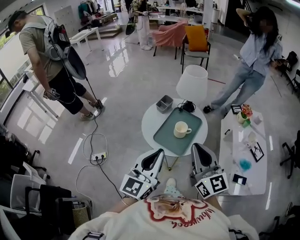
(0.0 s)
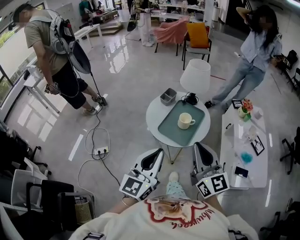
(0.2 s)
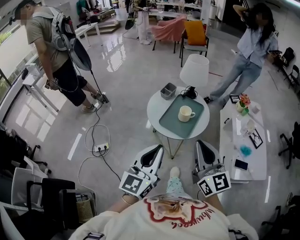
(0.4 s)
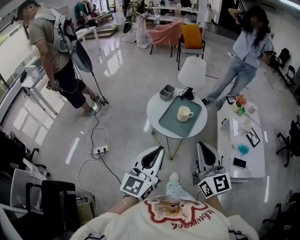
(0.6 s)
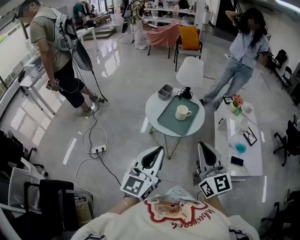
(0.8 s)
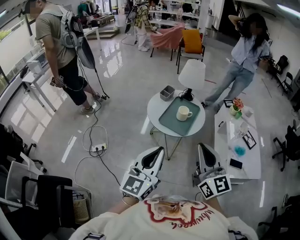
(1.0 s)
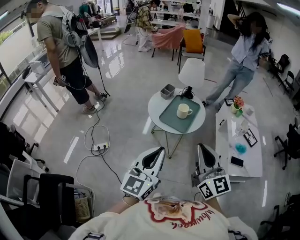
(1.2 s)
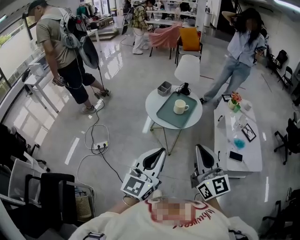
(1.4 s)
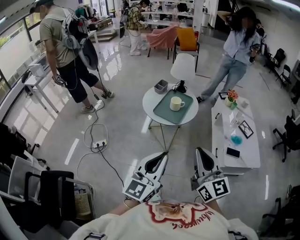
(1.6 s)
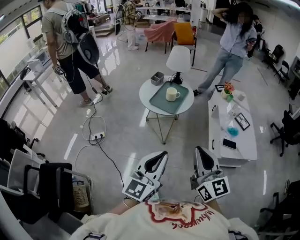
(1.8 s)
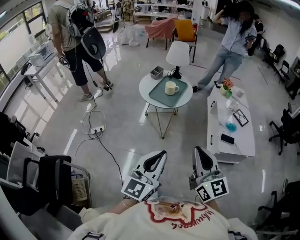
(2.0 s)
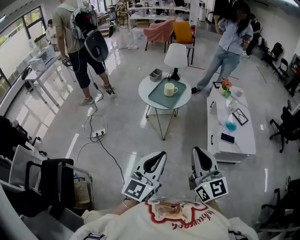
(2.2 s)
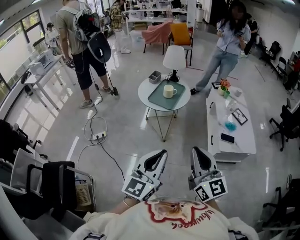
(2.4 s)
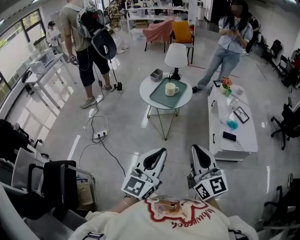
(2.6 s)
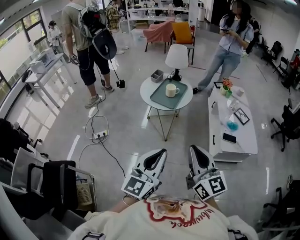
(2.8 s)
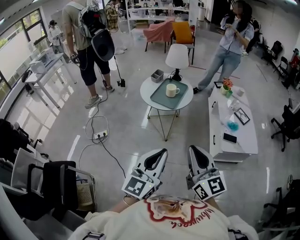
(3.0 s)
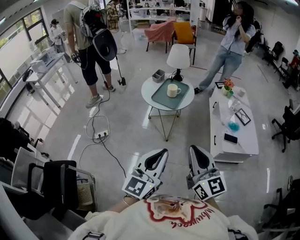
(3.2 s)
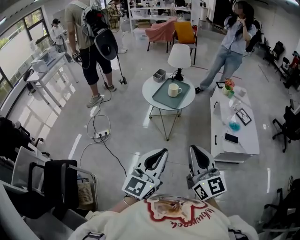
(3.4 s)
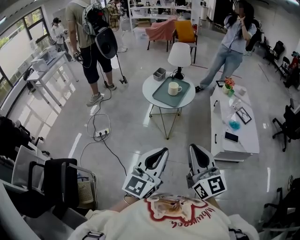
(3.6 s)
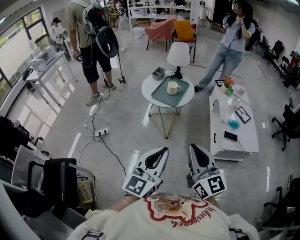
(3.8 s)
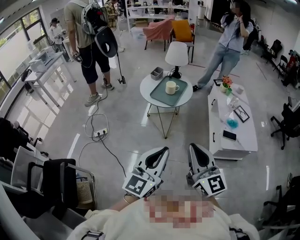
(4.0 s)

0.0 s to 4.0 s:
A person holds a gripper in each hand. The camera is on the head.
0.0 to 1.4 s: Both grippers travel together backward, some 20 cm.
1.4 to 2.6 s: The right gripper heads backward, covering about 15 cm. Meanwhile the left gripper is displaced backward and to the right by roughly 15 cm.
2.6 to 4.0 s: The grippers move only a little.

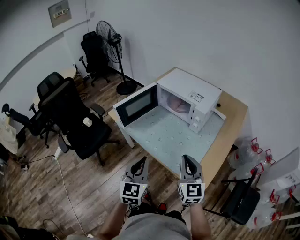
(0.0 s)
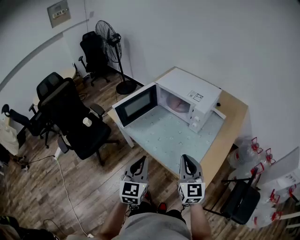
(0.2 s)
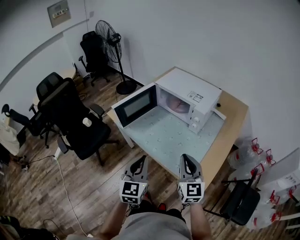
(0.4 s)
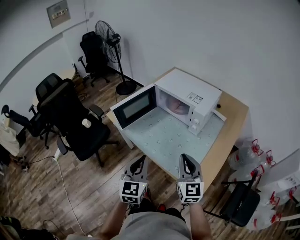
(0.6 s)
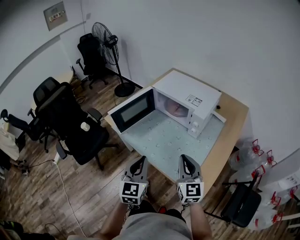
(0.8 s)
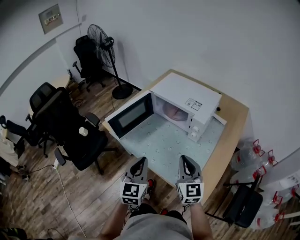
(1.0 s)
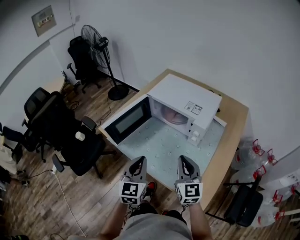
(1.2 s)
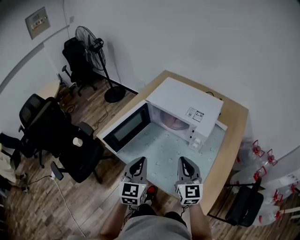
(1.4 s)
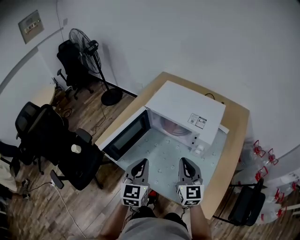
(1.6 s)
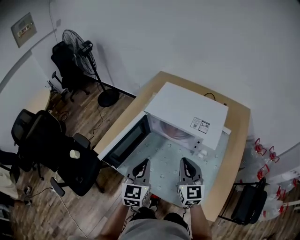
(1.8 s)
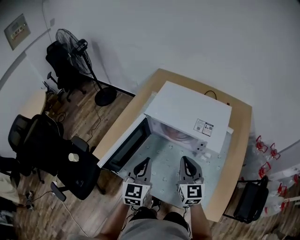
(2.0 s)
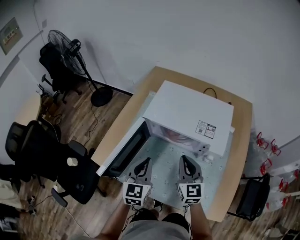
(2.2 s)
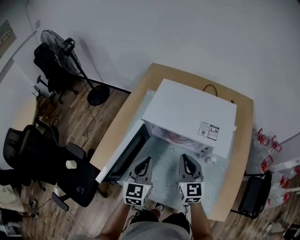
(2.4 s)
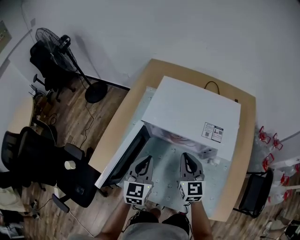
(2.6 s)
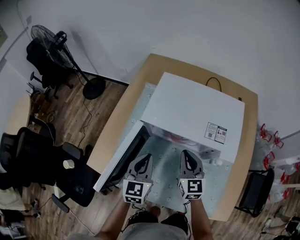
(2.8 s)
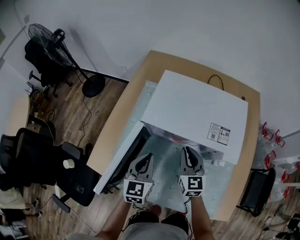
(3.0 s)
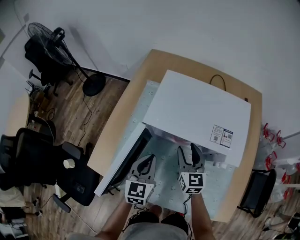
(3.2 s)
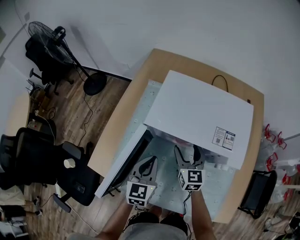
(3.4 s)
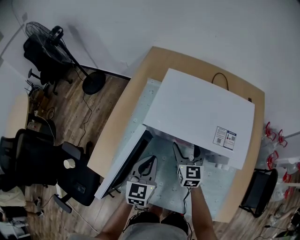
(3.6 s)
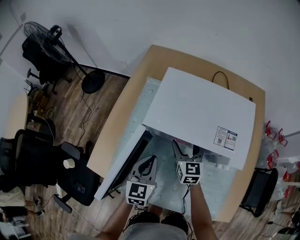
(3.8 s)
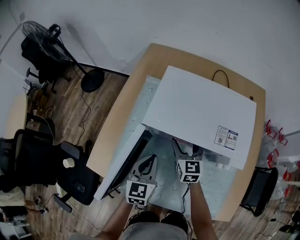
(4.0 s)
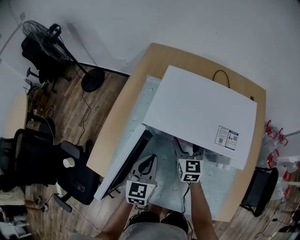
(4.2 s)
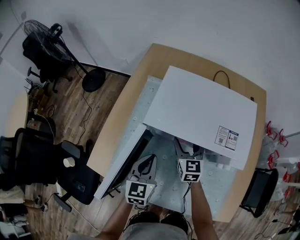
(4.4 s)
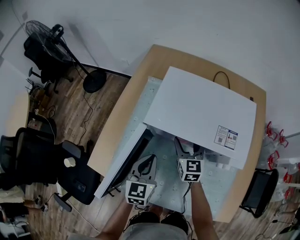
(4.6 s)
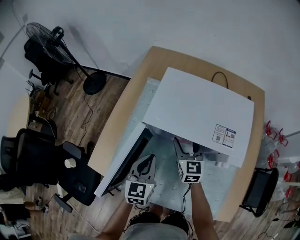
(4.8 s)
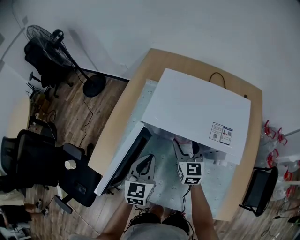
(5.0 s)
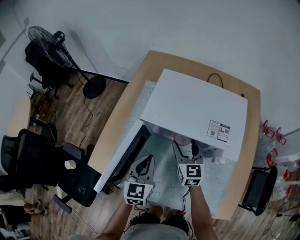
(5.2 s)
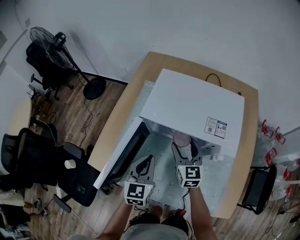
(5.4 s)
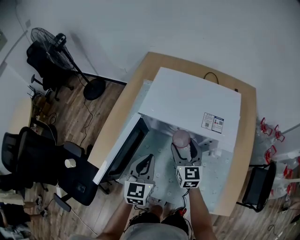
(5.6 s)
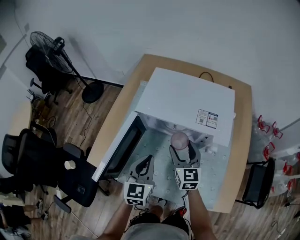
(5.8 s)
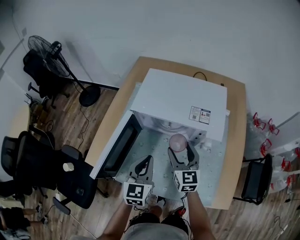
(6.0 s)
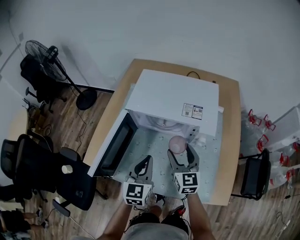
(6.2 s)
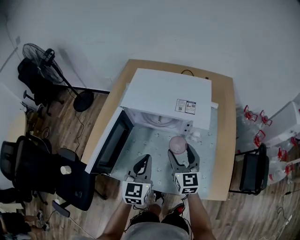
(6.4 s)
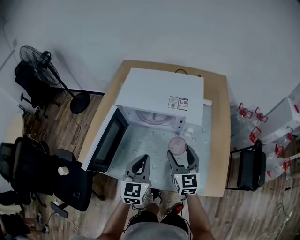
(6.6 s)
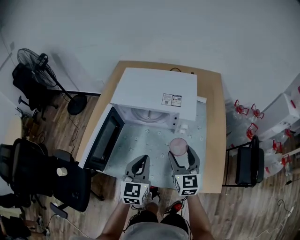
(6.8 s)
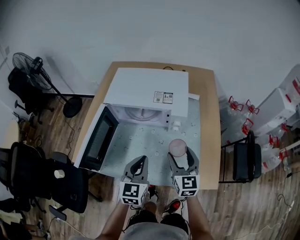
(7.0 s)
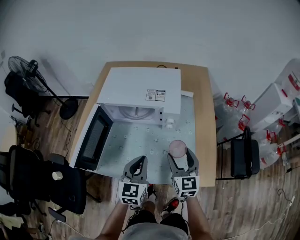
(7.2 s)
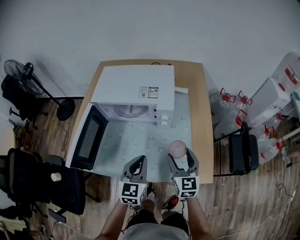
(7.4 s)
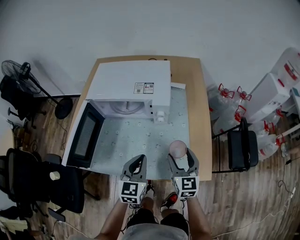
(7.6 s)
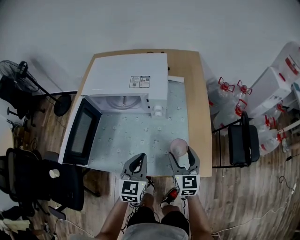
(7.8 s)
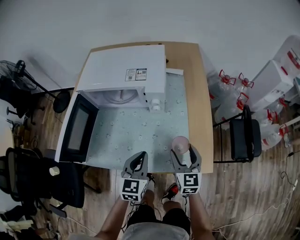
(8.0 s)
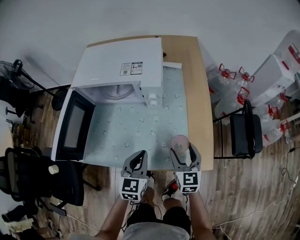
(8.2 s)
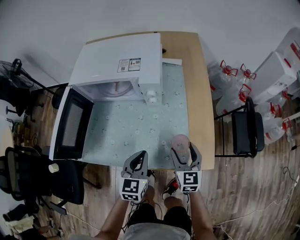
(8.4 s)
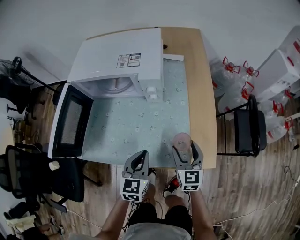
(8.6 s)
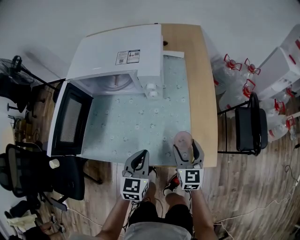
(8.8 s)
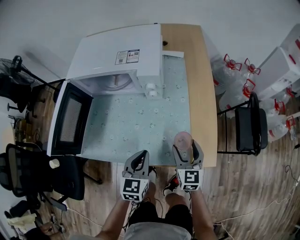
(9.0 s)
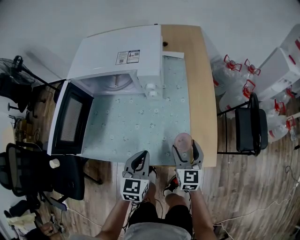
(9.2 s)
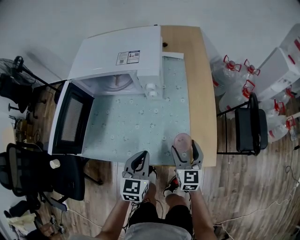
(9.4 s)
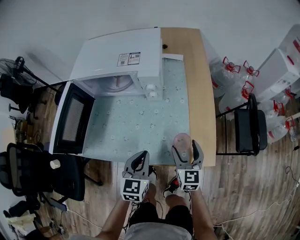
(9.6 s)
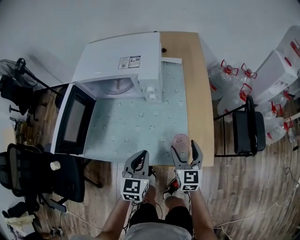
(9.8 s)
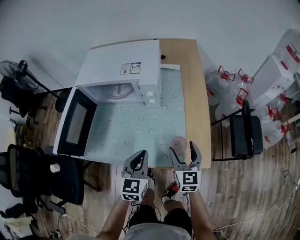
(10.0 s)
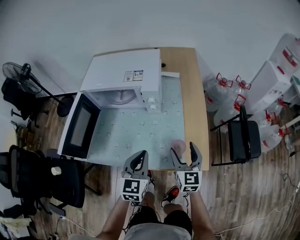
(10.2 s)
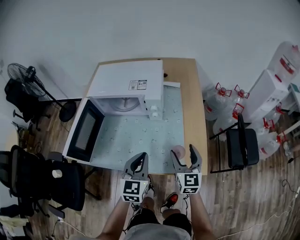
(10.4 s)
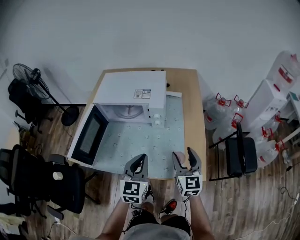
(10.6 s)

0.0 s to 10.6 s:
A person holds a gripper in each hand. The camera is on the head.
0.0 to 1.6 s: Both grippers move forward, roughly 25 cm.
1.6 to 3.0 s: Both grippers travel together forward and downward, roughly 20 cm.
3.0 to 4.6 s: The right gripper heads forward, covering roughly 5 cm, and opens up.
4.6 to 6.0 s: The left gripper travels backward, upward and to the right by roughly 10 cm. Meanwhile the right gripper travels backward and upward by about 15 cm.
6.0 to 7.6 s: The grippers both shift to the right and backward by some 20 cm.
7.6 to 9.0 s: The left gripper is displaced downward by approximately 10 cm, while the right gripper shifts about 15 cm downward and to the right.
9.0 to 10.6 s: Both grippers travel together upward, roughly 15 cm.

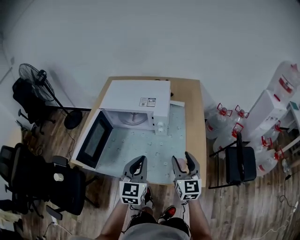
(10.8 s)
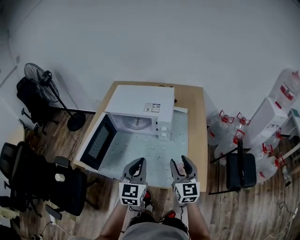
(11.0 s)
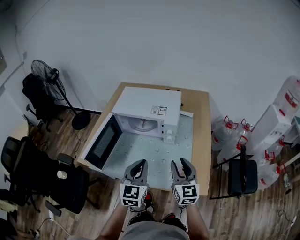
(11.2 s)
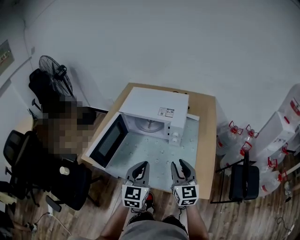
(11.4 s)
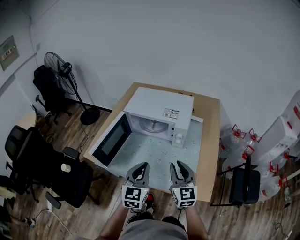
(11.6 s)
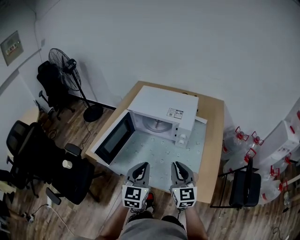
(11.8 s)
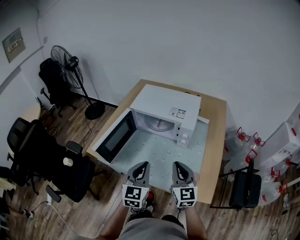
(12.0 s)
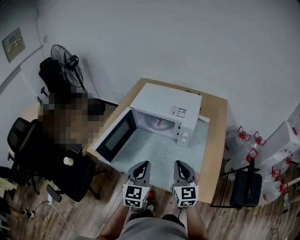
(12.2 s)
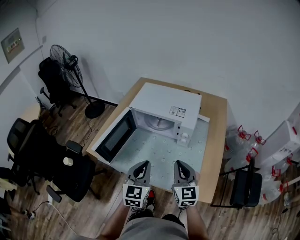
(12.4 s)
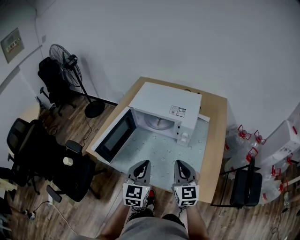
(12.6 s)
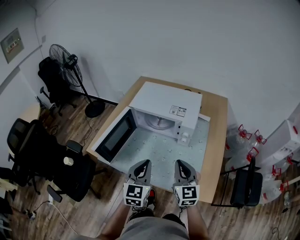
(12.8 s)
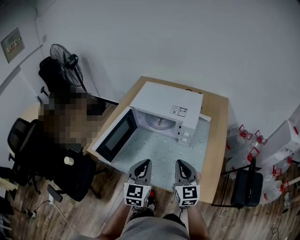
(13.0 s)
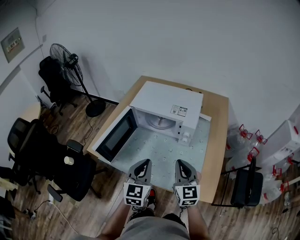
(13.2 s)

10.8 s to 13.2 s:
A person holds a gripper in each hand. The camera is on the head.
10.8 to 12.0 s: The two grippers go approximately 10 cm to the left. The right gripper closes its fingers.
12.0 to 13.2 s: The grippers make only small movements.

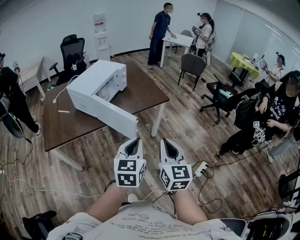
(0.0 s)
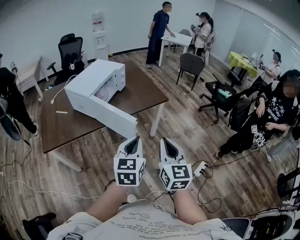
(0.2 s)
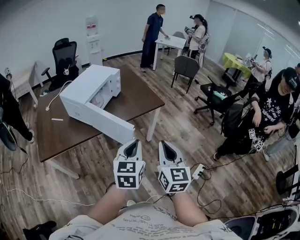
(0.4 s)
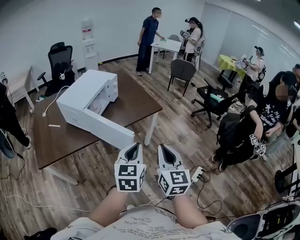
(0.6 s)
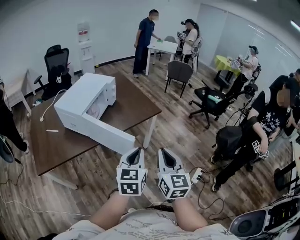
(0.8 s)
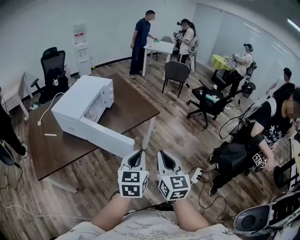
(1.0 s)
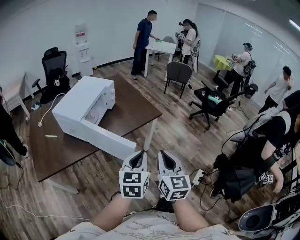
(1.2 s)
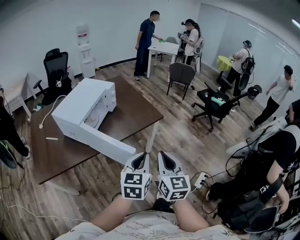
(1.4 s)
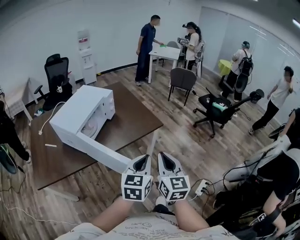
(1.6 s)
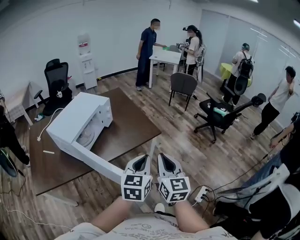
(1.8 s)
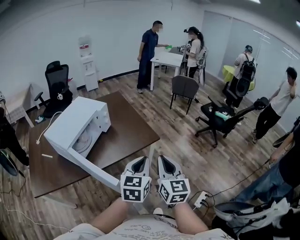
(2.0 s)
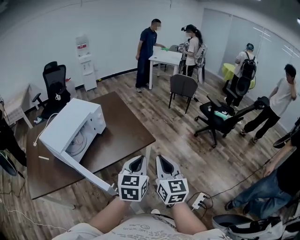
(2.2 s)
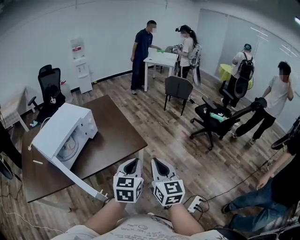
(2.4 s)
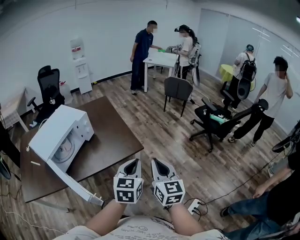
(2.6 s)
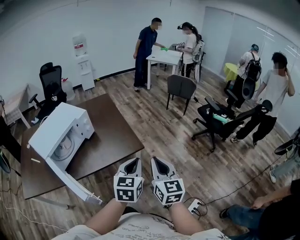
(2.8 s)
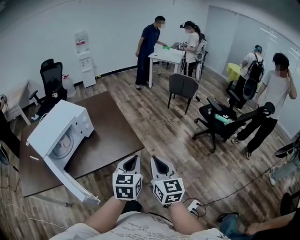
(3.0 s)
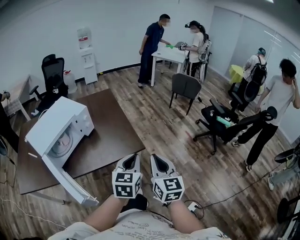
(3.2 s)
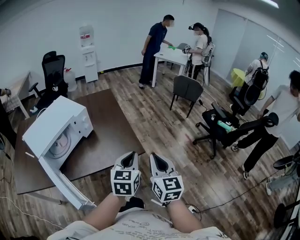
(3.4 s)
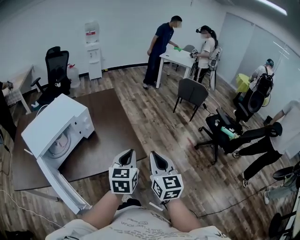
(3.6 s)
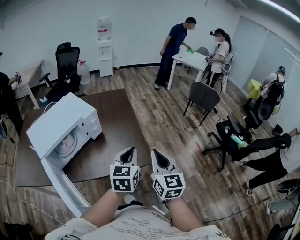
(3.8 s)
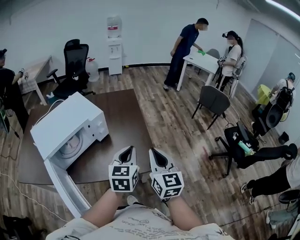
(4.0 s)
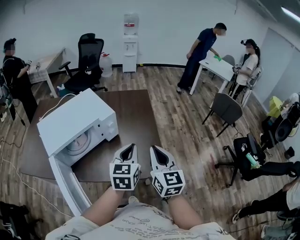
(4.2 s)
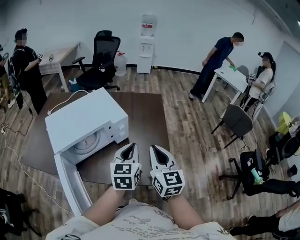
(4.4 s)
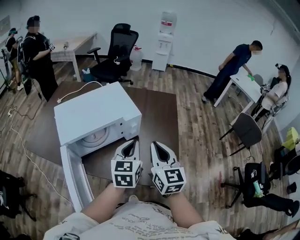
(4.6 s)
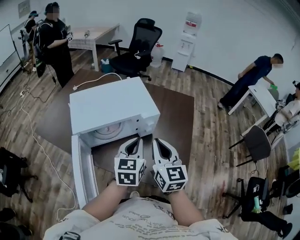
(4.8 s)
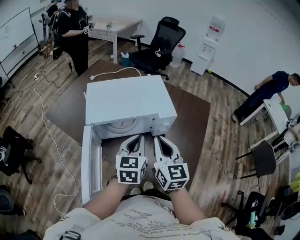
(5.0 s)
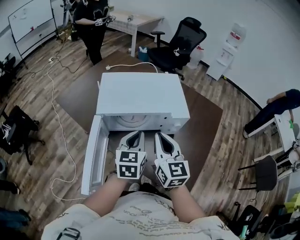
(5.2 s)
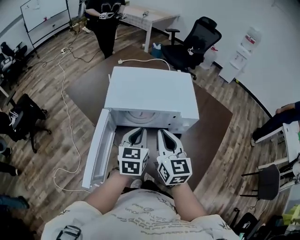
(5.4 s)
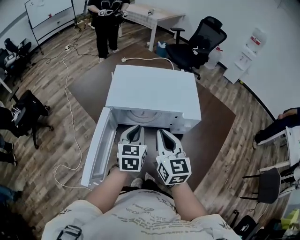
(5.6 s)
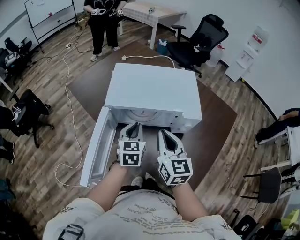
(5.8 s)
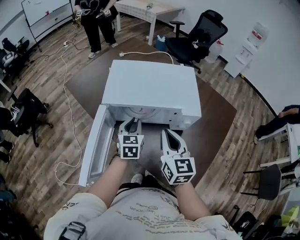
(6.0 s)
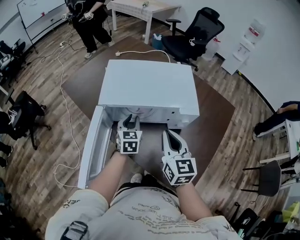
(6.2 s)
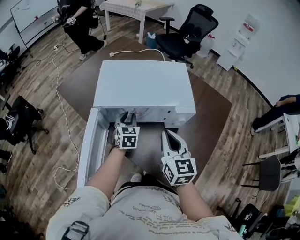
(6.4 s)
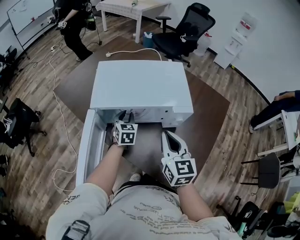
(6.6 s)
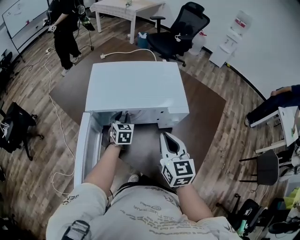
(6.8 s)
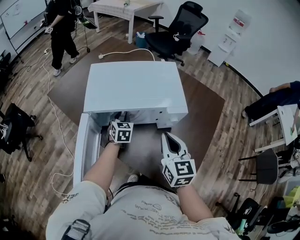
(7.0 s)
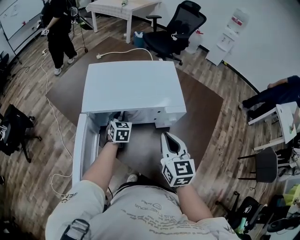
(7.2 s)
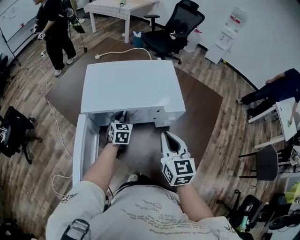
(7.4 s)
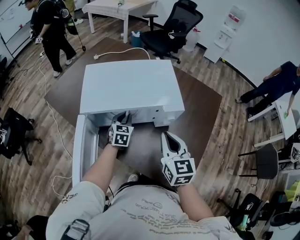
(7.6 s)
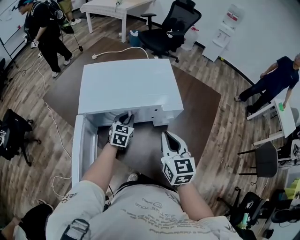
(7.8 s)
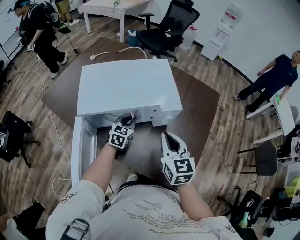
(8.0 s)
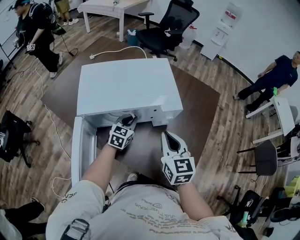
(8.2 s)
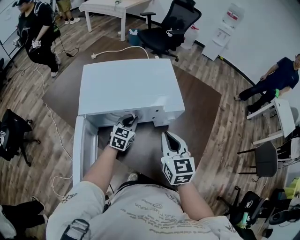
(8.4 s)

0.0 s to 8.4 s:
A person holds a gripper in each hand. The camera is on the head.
0.0 to 1.4 s: Both grippers move forward, approximately 10 cm.
1.4 to 2.8 s: Both grippers move forward and to the right, about 30 cm.
2.8 to 4.2 s: The two grippers go approximately 30 cm forward and to the left. The left gripper swivels approximately 30 degrees. Meanwhile the right gripper turns by about 20 degrees.
4.2 to 5.6 s: The left gripper moves some 30 cm, and turns by approximately 50 degrees. The right gripper shifts by some 30 cm, and swivels roughly 50 degrees.
5.6 to 7.0 s: The right gripper is displaced to the right by roughly 10 cm. Meanwhile the left gripper travels downward and forward by some 20 cm.
7.0 to 8.4 s: The left gripper moves to the right, some 10 cm, and swivels roughly 30 degrees.
